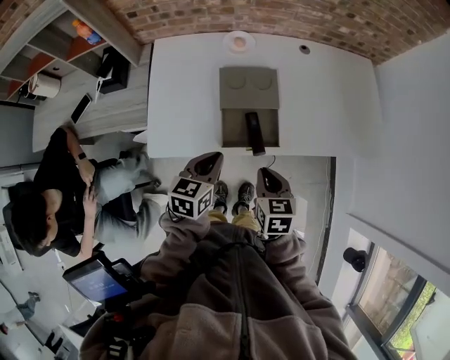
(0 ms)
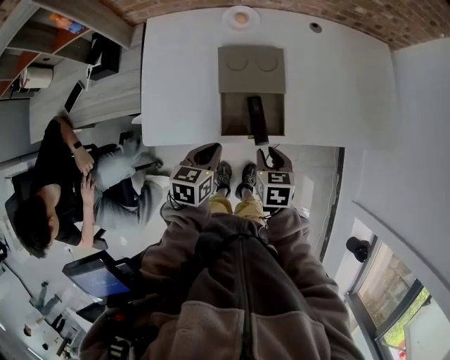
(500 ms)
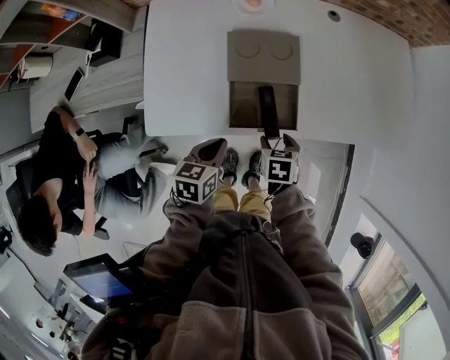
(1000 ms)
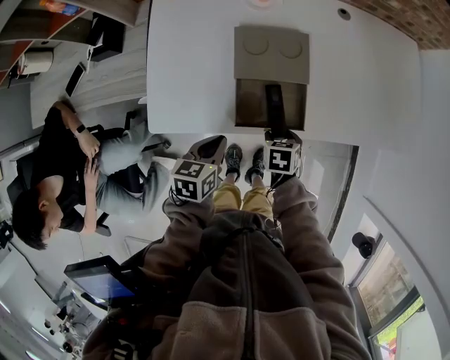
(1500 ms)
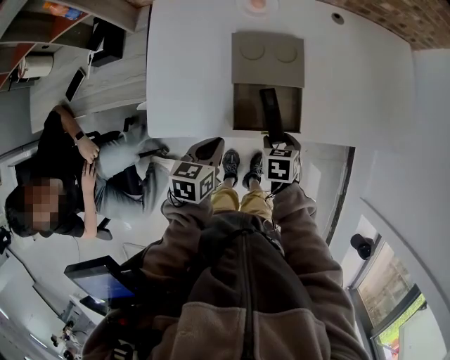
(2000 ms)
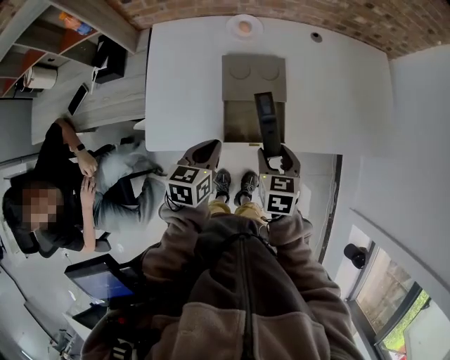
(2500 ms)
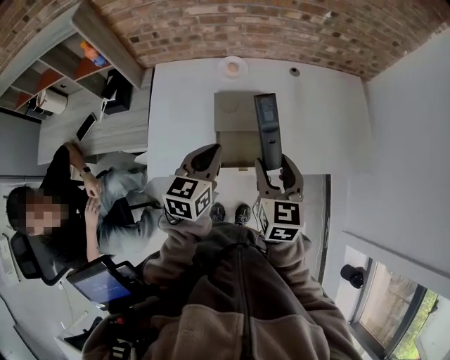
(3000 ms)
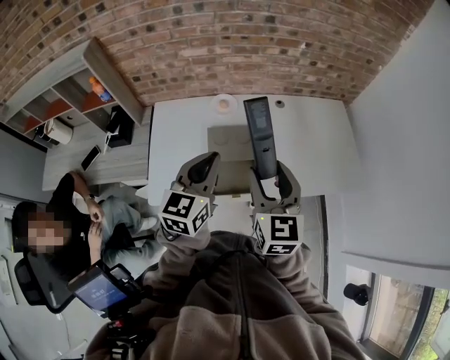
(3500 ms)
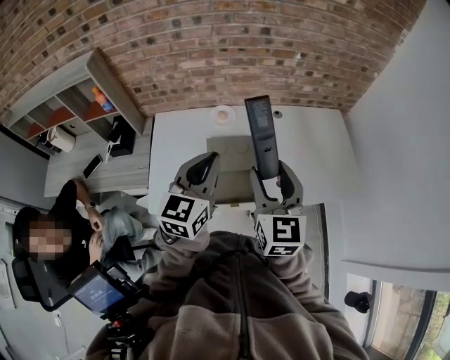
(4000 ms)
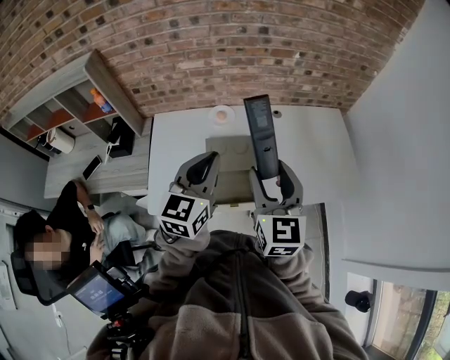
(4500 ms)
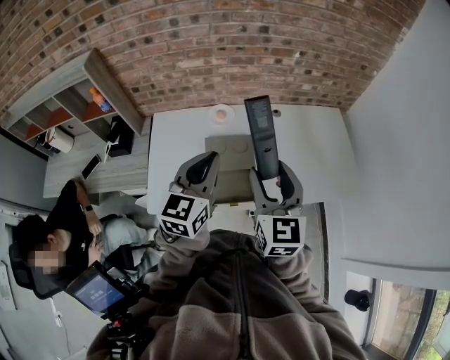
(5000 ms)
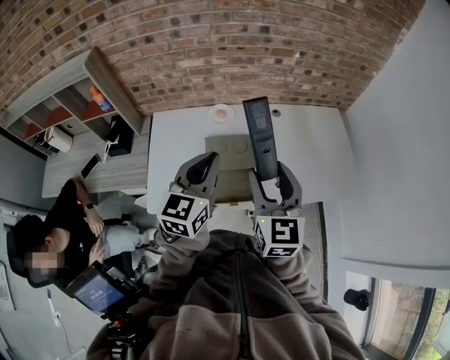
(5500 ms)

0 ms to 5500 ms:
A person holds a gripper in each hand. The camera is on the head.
0 ms to 2000 ms: The right gripper shifts approximately 15 cm downward, rotates about 20 degrees, and opens up. Meanwhile the left gripper is displaced downward by approximately 10 cm.
2000 ms to 3500 ms: Both grippers move upward, about 35 cm. The right gripper tilts its fingers about 60 degrees upward. Meanwhile the left gripper points its fingers some 30 degrees further upward.
3500 ms to 5500 ms: The grippers move only a little.

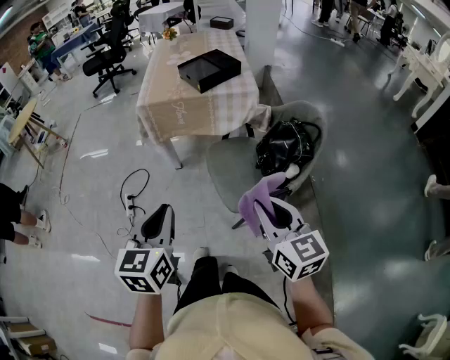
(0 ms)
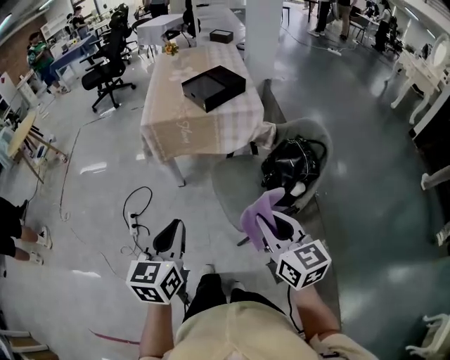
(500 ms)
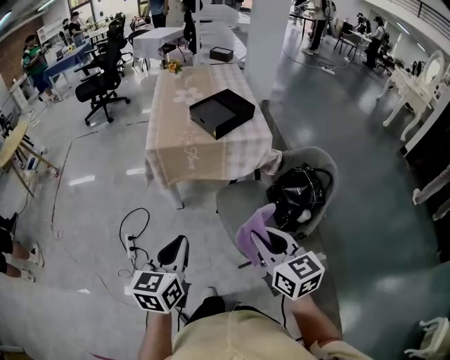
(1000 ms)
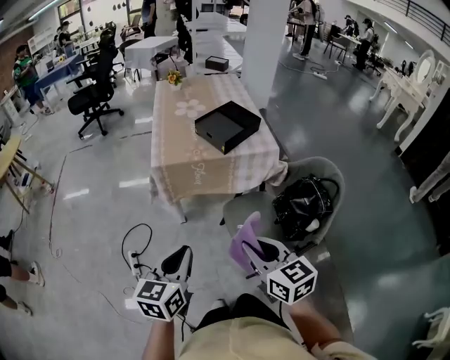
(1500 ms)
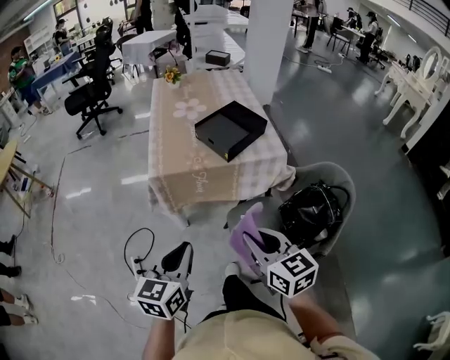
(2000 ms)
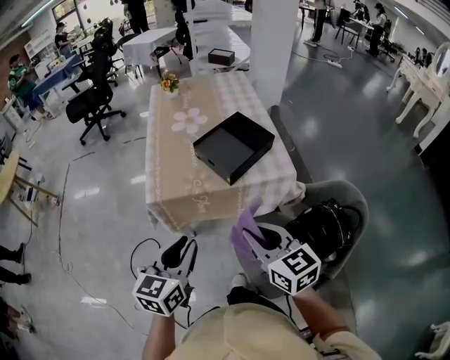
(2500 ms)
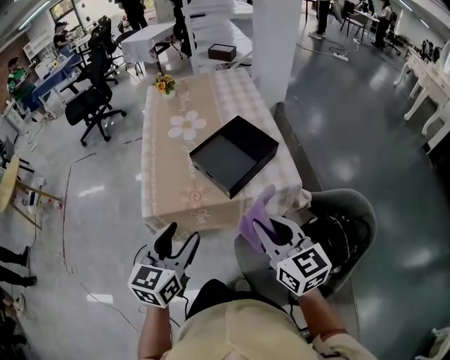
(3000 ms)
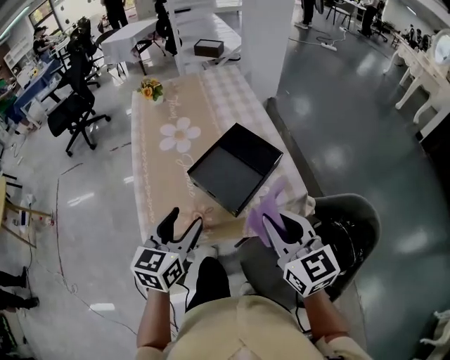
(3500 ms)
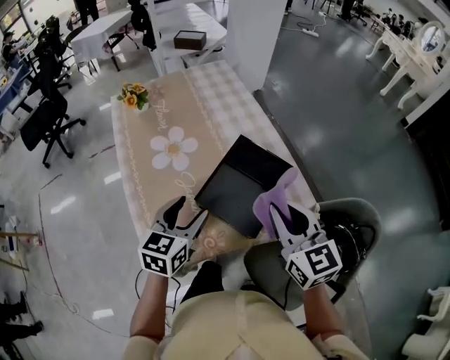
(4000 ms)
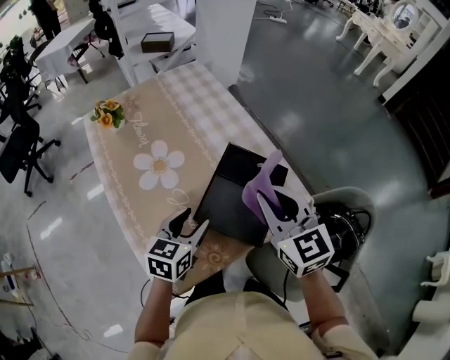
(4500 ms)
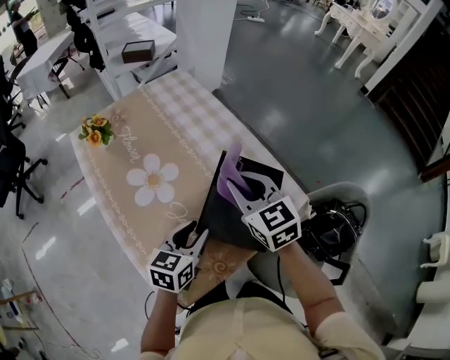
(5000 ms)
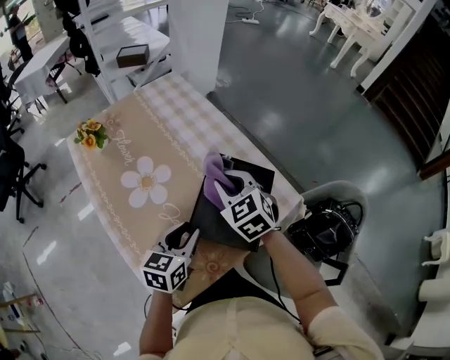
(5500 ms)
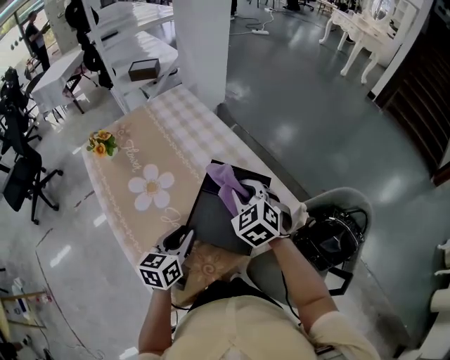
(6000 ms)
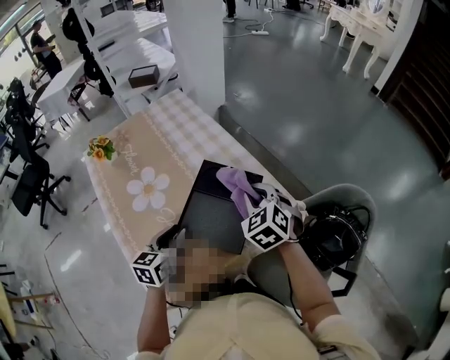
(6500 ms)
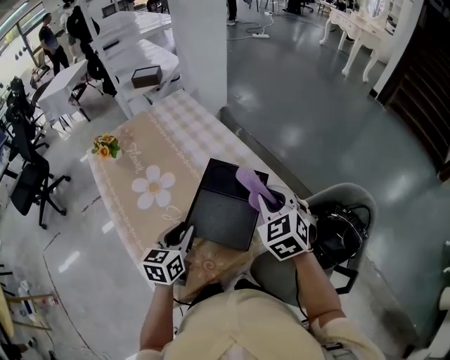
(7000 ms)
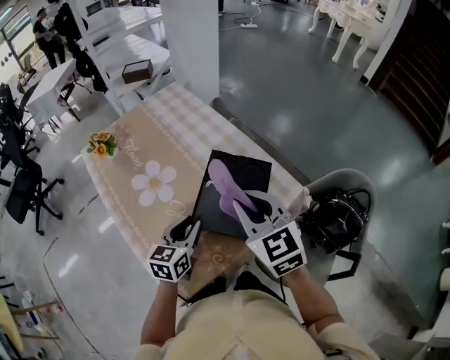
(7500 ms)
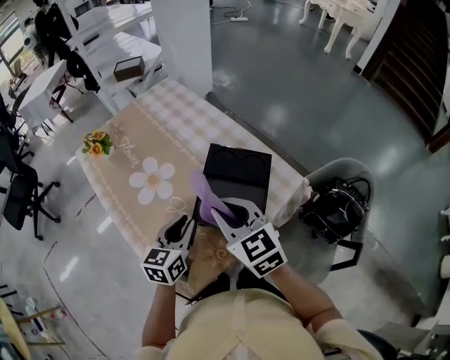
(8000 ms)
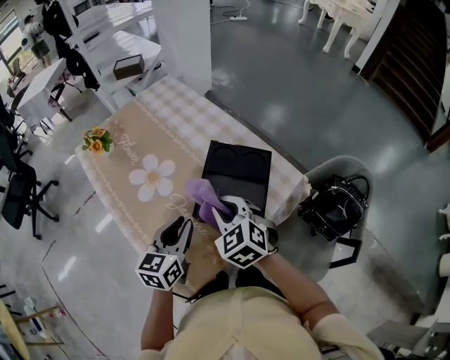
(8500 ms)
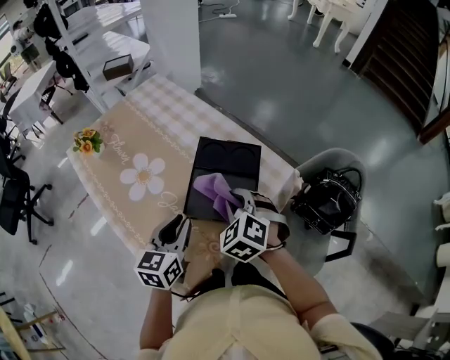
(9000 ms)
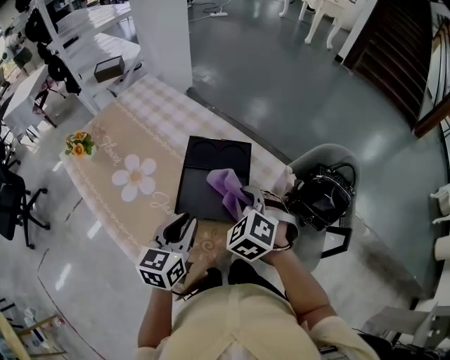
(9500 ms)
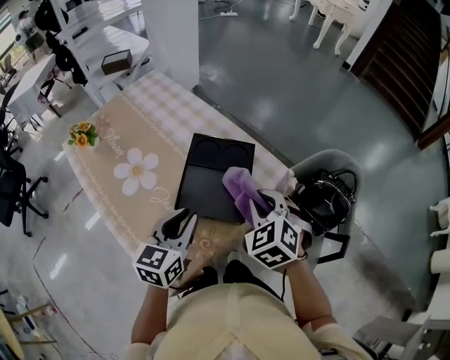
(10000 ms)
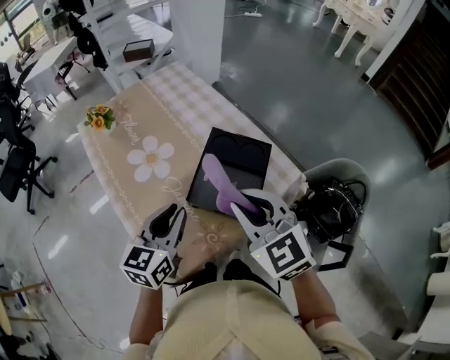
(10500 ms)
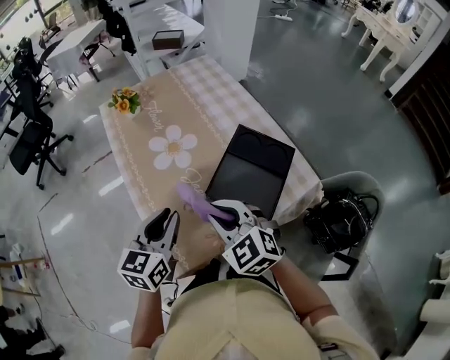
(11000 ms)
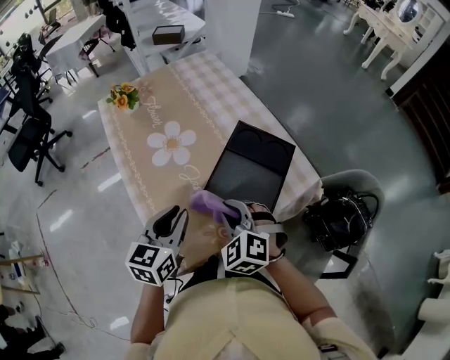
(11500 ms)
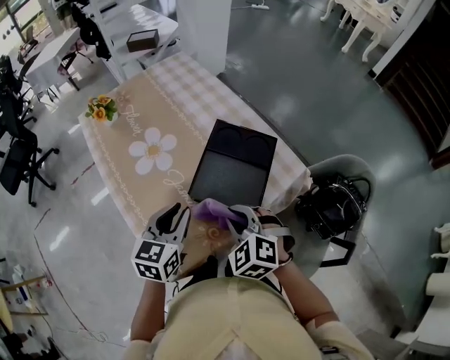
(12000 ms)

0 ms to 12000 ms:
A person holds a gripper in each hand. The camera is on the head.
0 ms to 2000 ms: The two grippers go about 30 cm forward and to the left.
2000 ms to 4000 ms: The grippers both shift forward by some 40 cm. The right gripper turns by some 20 degrees; the left gripper turns by approximately 20 degrees, and opens up.
4000 ms to 6000 ms: The right gripper heads forward and downward, covering some 15 cm, and rotates approximately 40 degrees. The left gripper travels downward by some 5 cm, and closes.
6000 ms to 8000 ms: The right gripper shifts approximately 15 cm backward, to the left and upward, and turns by approximately 30 degrees.
8000 ms to 10000 ms: The left gripper travels to the right and upward by approximately 10 cm. Meanwhile the right gripper heads to the right, covering about 15 cm, and changes its angle by about 40 degrees.
10000 ms to 12000 ms: The right gripper turns by roughly 30 degrees.

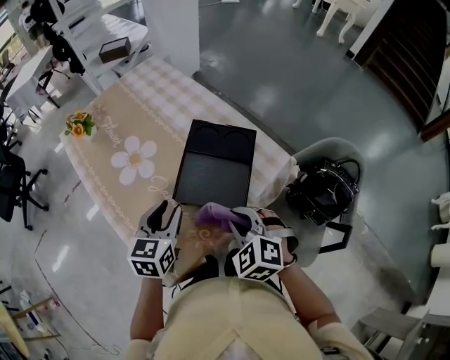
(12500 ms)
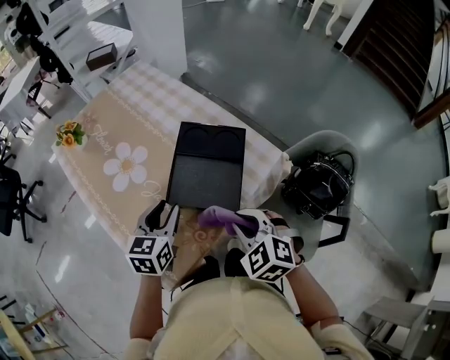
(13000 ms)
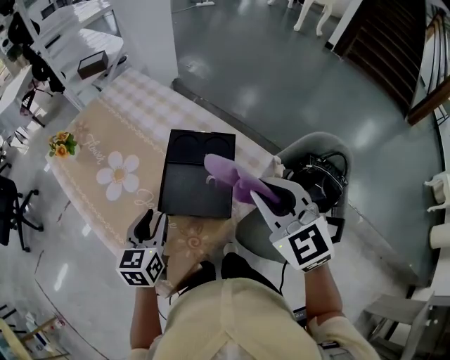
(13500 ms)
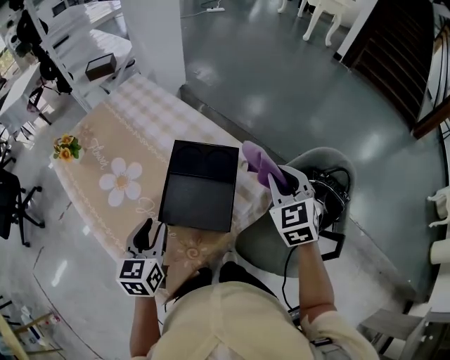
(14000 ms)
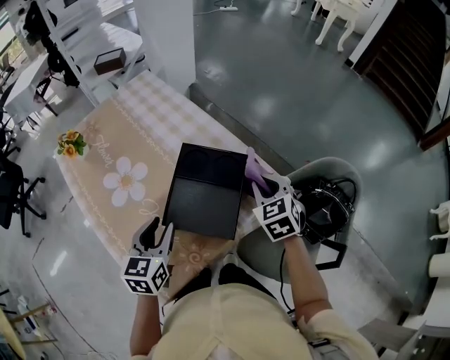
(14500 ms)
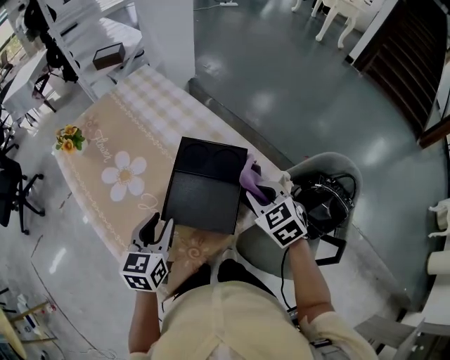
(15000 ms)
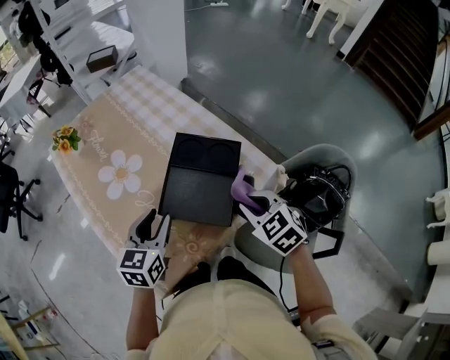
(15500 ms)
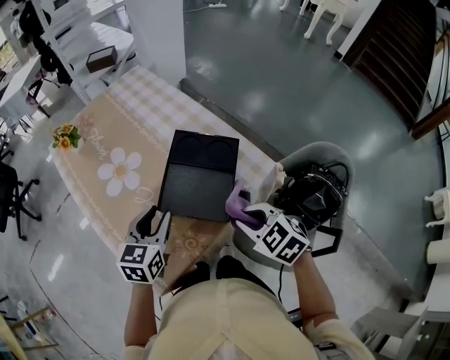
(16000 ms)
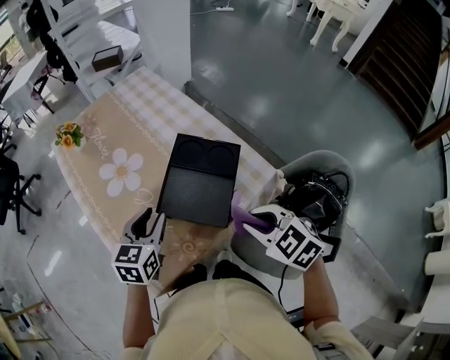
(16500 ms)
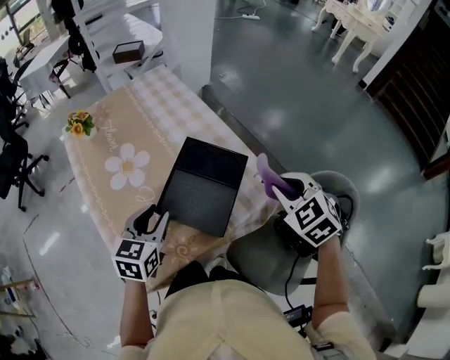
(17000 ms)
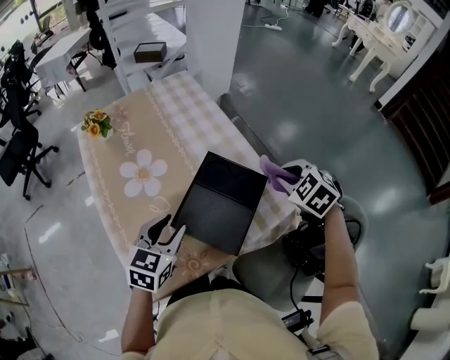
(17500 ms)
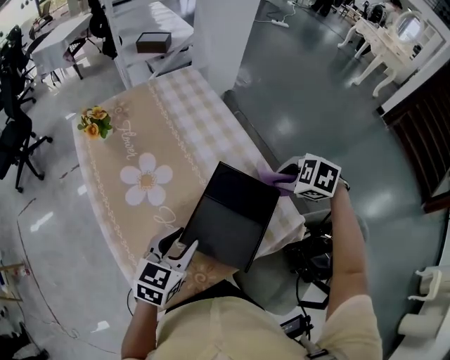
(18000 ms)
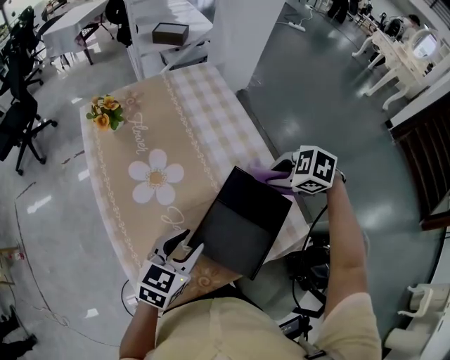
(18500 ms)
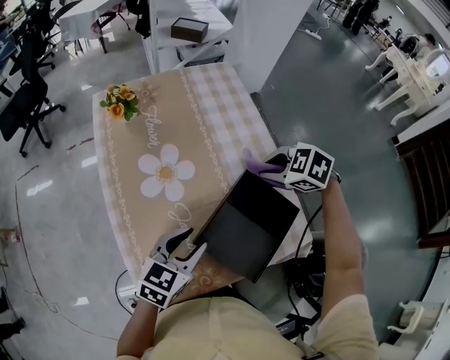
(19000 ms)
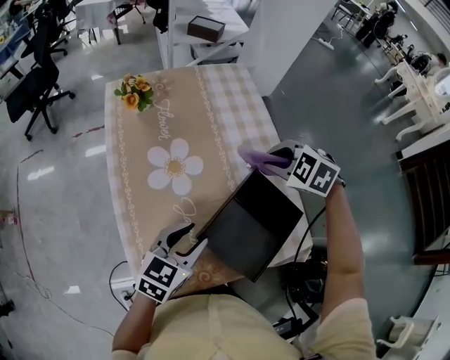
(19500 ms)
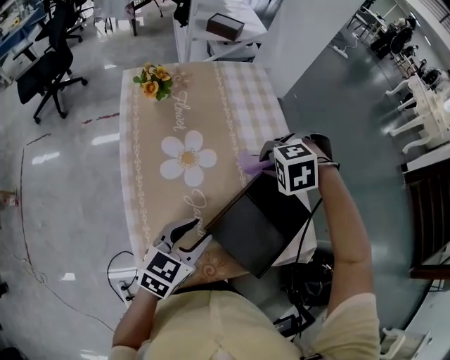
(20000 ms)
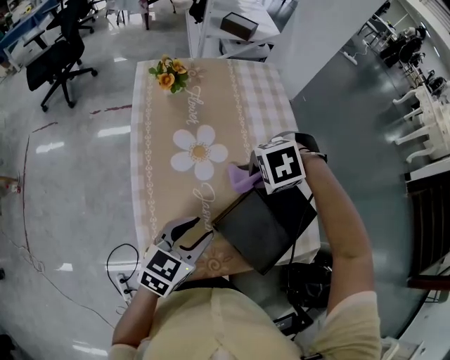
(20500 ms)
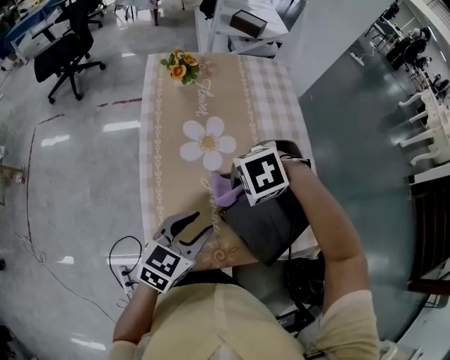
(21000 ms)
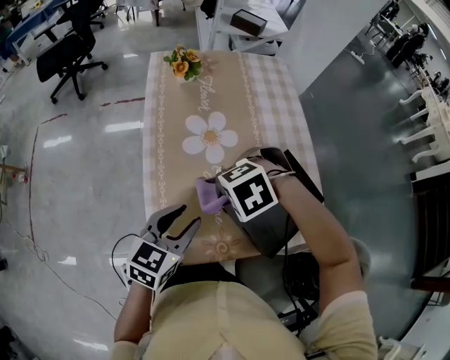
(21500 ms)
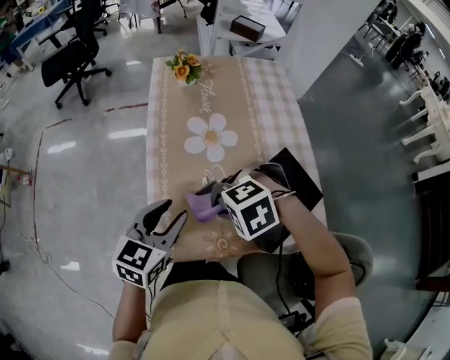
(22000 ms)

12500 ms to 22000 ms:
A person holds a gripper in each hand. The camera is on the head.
12500 ms to 14500 ms: The right gripper travels forward and to the right by about 20 cm, and turns by some 30 degrees.
14500 ms to 16500 ms: The right gripper is displaced backward and to the left by about 15 cm, and rotates approximately 30 degrees.
16500 ms to 18000 ms: The right gripper travels forward by some 25 cm, and changes its angle by roughly 30 degrees.
18000 ms to 20000 ms: The right gripper ends up about 20 cm from where it was, and rotates around the line of its fingers by some 50 degrees, counterclockwise from behind.
20000 ms to 22000 ms: The right gripper ends up approximately 25 cm from where it was, and swivels roughly 30 degrees. The left gripper shifts by some 10 cm.
